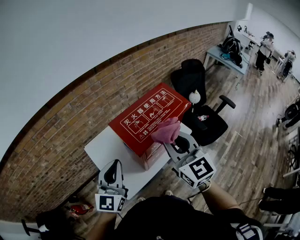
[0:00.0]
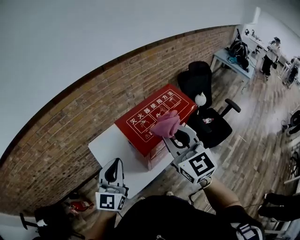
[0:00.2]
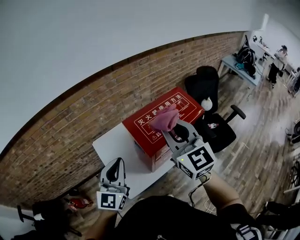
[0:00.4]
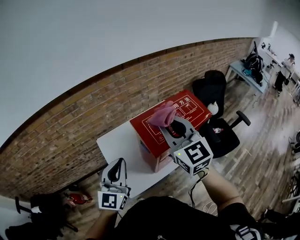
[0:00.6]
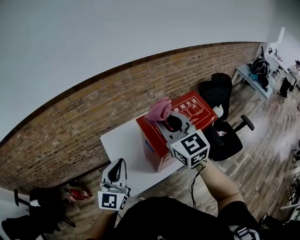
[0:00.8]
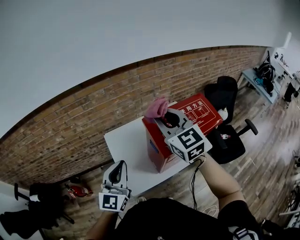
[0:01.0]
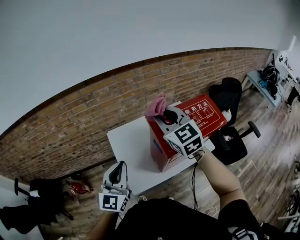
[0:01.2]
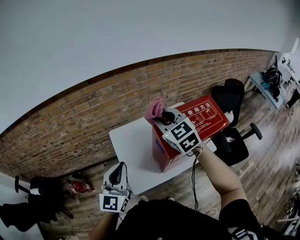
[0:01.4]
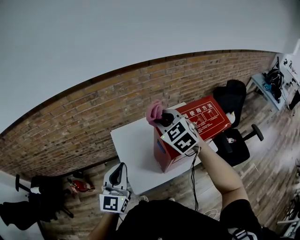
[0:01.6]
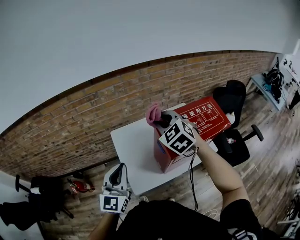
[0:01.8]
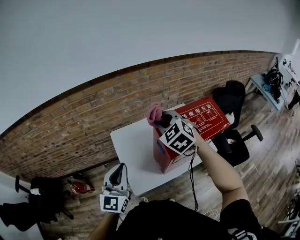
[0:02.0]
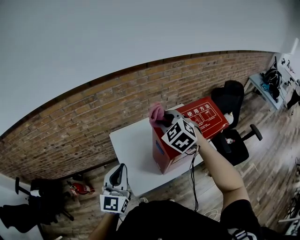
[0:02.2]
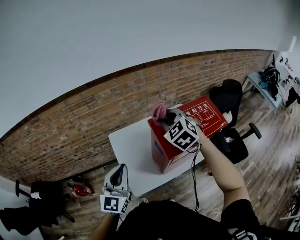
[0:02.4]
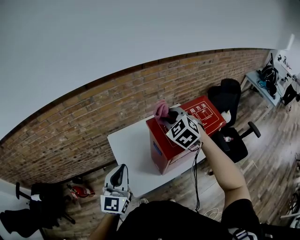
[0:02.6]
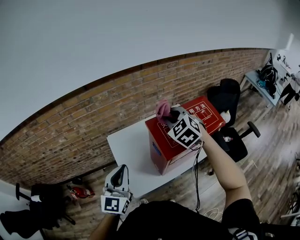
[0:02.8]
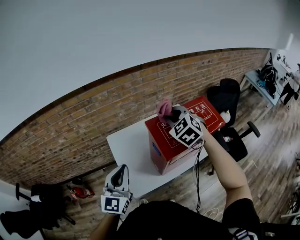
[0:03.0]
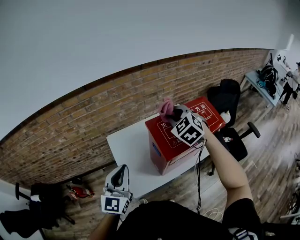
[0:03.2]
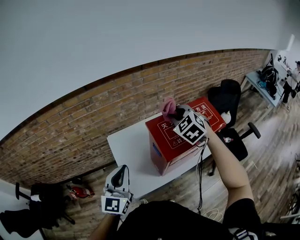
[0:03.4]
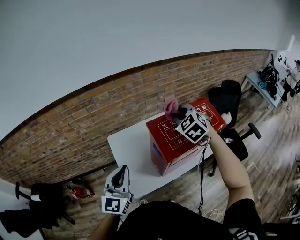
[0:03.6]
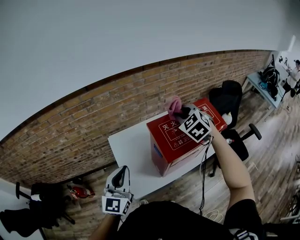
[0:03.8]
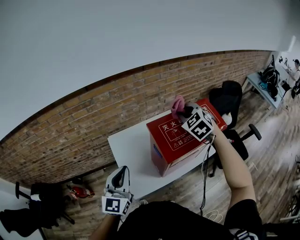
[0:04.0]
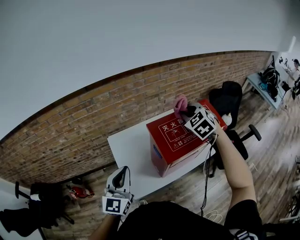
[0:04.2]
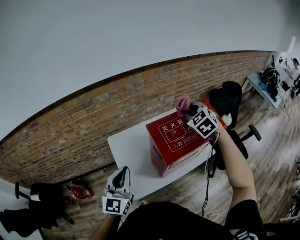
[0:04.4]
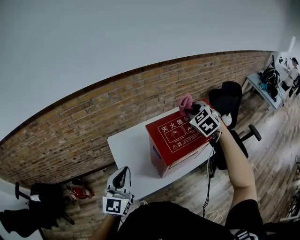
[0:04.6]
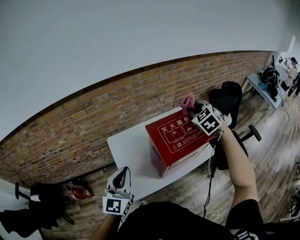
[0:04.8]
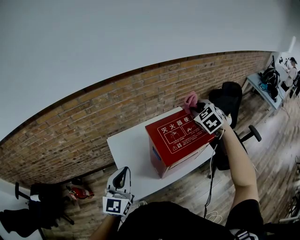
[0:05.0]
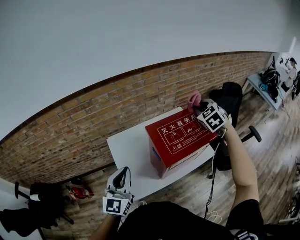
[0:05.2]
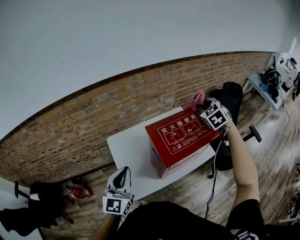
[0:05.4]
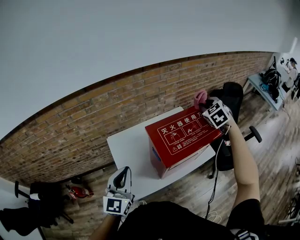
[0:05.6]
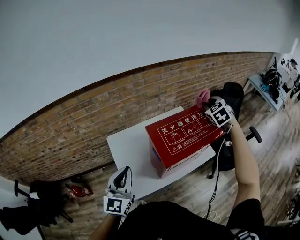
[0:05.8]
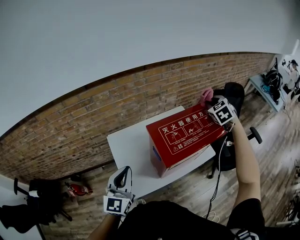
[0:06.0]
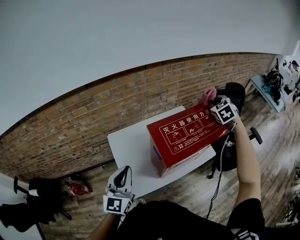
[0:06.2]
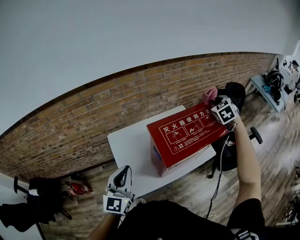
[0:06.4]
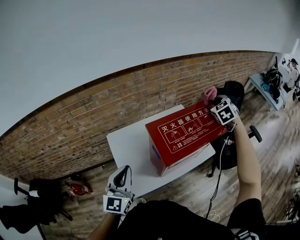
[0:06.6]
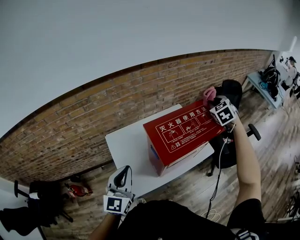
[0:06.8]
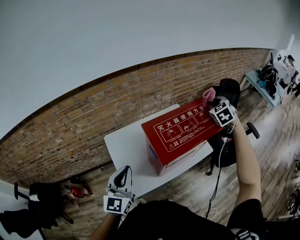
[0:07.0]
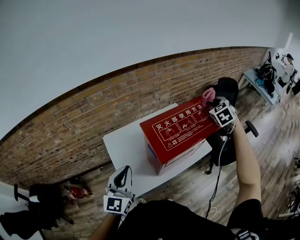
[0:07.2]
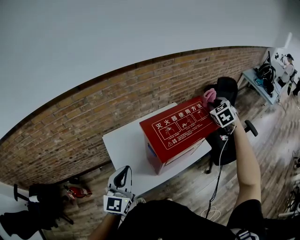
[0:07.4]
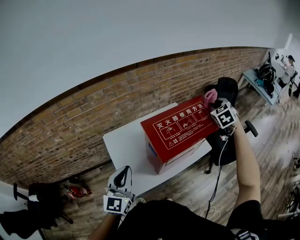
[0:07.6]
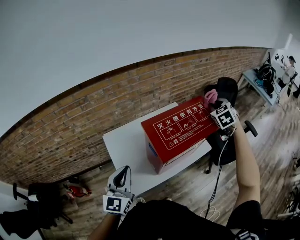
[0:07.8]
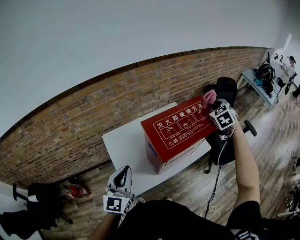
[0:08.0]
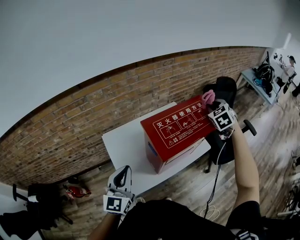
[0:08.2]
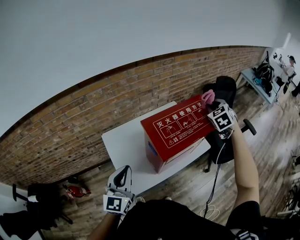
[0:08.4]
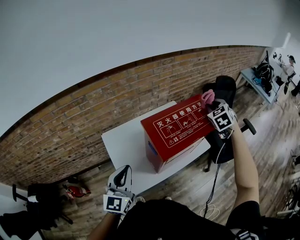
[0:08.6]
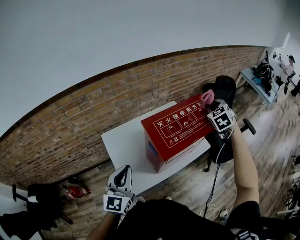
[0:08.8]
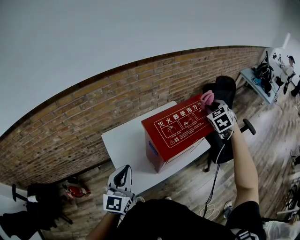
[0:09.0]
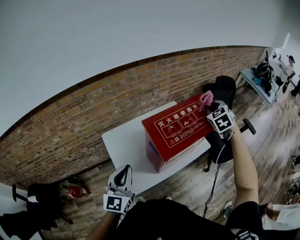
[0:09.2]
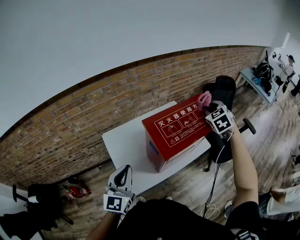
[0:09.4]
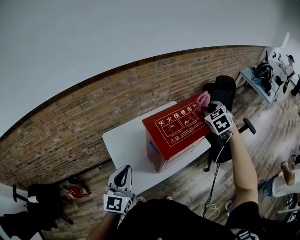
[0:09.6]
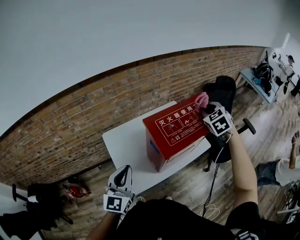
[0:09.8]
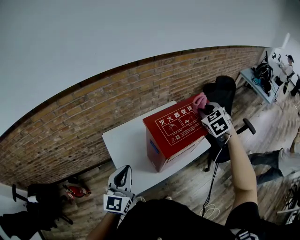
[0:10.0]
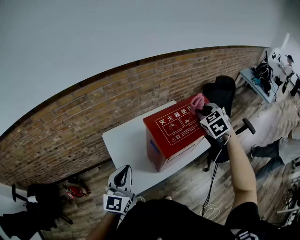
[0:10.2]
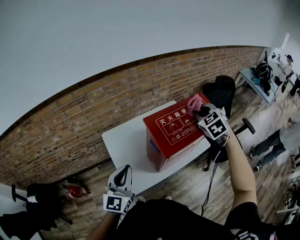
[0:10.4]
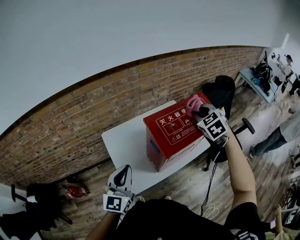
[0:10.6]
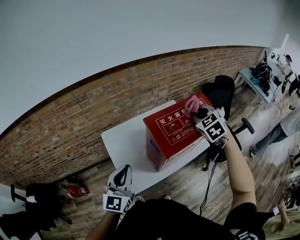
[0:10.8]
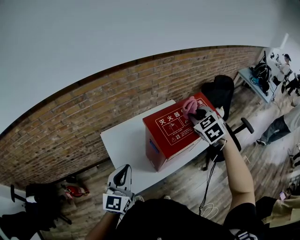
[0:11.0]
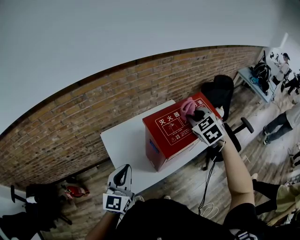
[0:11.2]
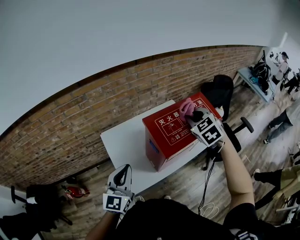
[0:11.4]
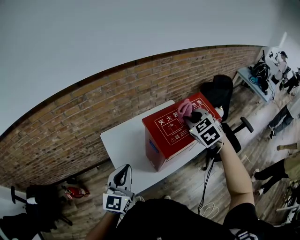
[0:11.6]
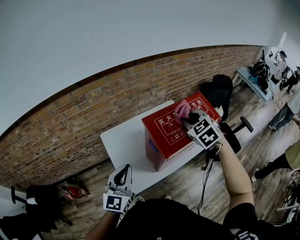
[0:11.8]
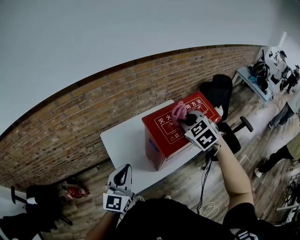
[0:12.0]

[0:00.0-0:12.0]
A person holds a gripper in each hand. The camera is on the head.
0:00.0 to 0:01.6: The left gripper heads to the left, covering some 10 cm. Meanwhile the right gripper is displaced to the left and forward by about 20 cm, and turns by some 40 degrees.
0:01.6 to 0:03.0: The right gripper travels to the right by approximately 10 cm.
0:03.0 to 0:04.4: The right gripper heads to the right, covering some 10 cm.
0:04.4 to 0:06.0: The right gripper moves to the right and forward, approximately 15 cm.
0:06.0 to 0:07.6: The right gripper travels to the right by about 5 cm.
0:07.6 to 0:09.0: The grippers make only small movements.
0:09.0 to 0:10.4: The right gripper heads to the left and backward, covering some 10 cm.
0:10.4 to 0:12.0: The right gripper goes some 10 cm to the left and backward.

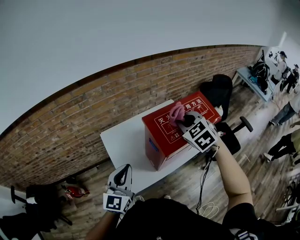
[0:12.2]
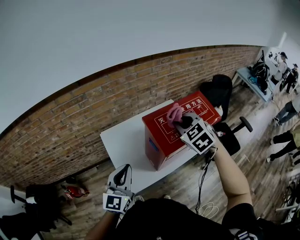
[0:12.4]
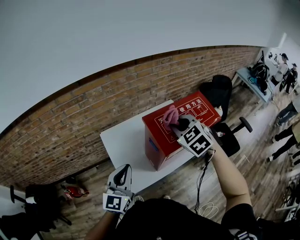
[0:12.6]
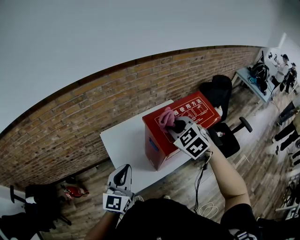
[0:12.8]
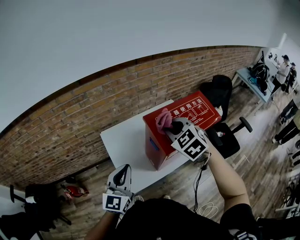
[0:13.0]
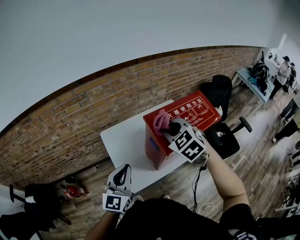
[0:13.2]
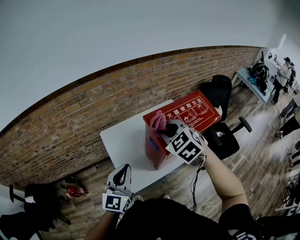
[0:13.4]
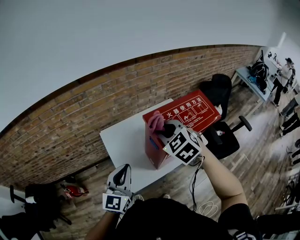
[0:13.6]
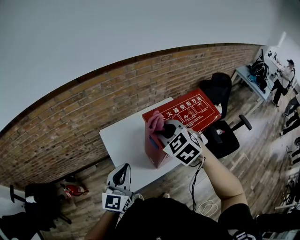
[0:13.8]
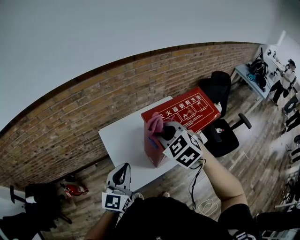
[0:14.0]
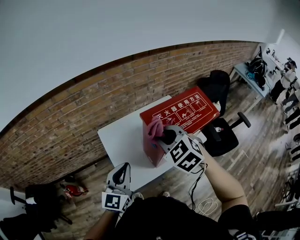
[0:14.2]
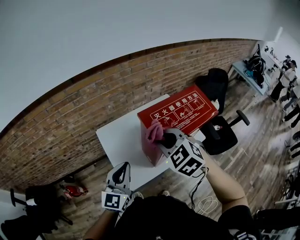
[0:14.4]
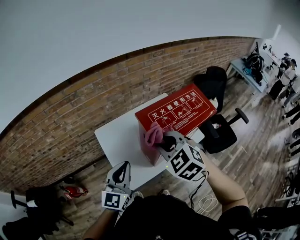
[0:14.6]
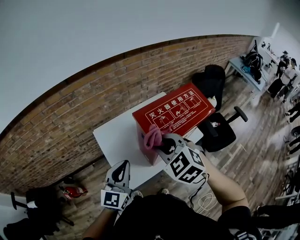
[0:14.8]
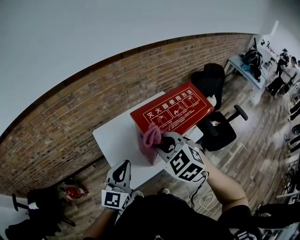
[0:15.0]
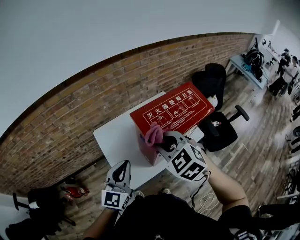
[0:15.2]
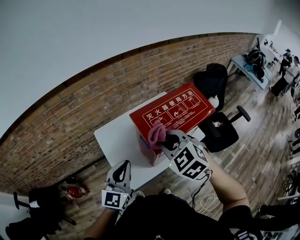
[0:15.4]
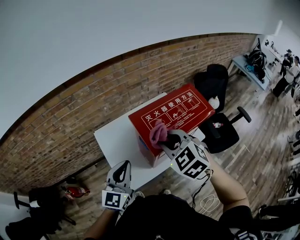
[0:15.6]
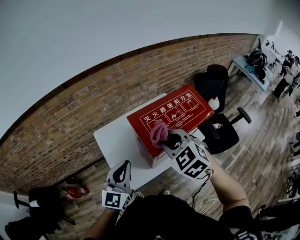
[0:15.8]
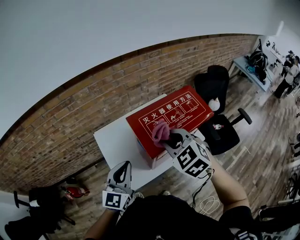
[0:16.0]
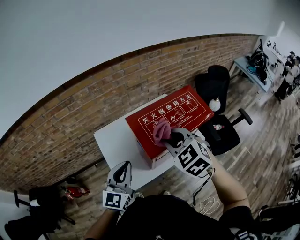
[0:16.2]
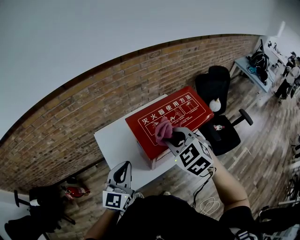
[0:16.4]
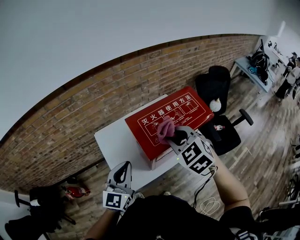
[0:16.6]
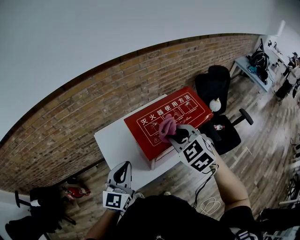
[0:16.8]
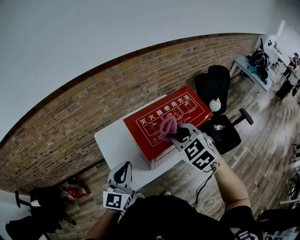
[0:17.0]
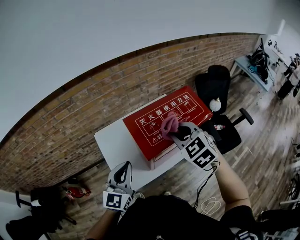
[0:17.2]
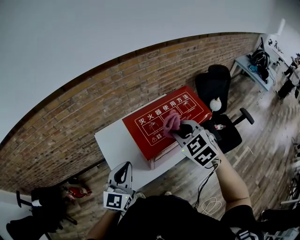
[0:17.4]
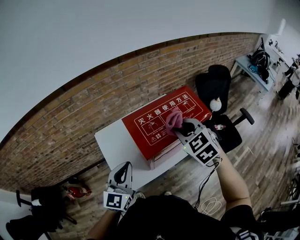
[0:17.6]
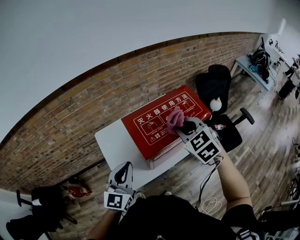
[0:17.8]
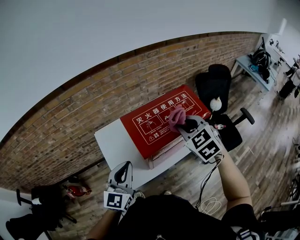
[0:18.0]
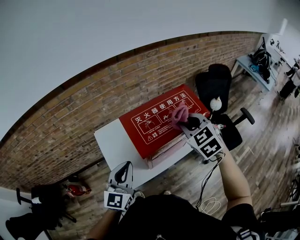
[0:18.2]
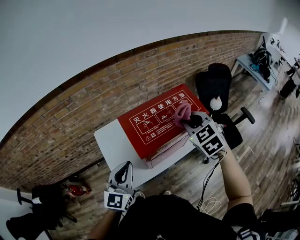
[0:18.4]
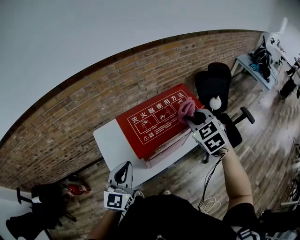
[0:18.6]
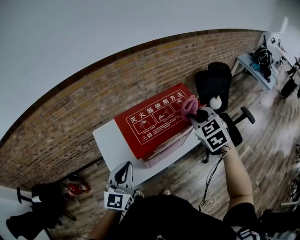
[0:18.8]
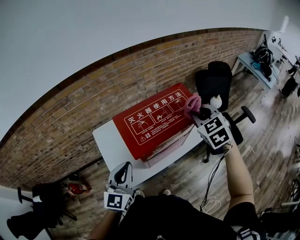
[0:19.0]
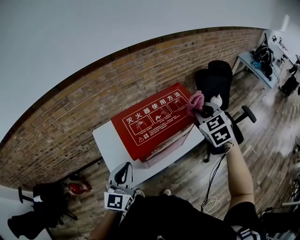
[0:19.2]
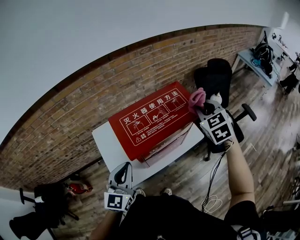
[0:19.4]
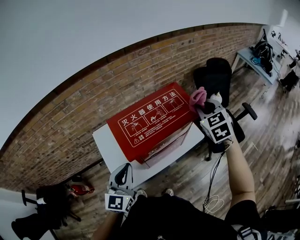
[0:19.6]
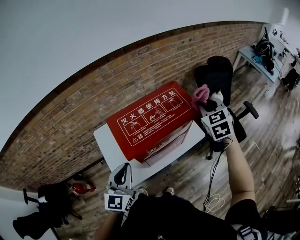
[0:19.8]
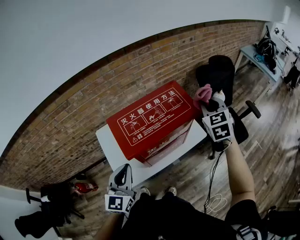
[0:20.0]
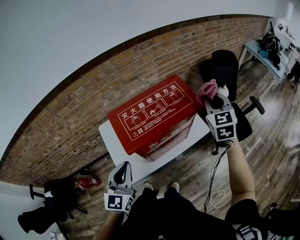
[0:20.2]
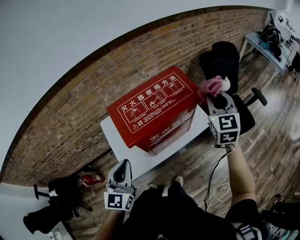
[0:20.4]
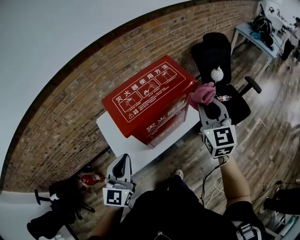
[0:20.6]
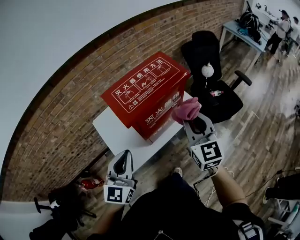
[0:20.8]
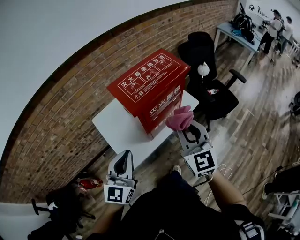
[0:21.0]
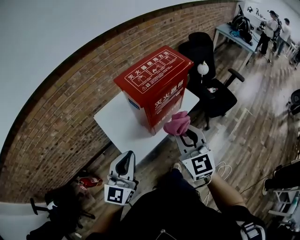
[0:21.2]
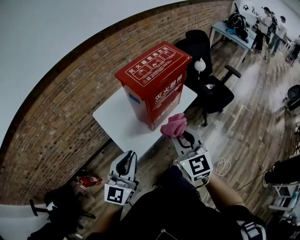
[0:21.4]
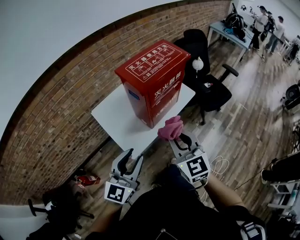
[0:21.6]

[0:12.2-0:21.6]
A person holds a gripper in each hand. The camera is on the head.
0:12.2 to 0:13.8: The right gripper is displaced to the left and backward by about 10 cm.
0:13.8 to 0:15.4: The right gripper changes place by approximately 5 cm. The left gripper moves approximately 5 cm.
0:15.4 to 0:17.0: The right gripper travels to the right by approximately 10 cm.
0:17.0 to 0:18.4: The right gripper heads to the right, covering some 10 cm.
0:18.4 to 0:20.0: The right gripper heads to the right and forward, covering approximately 15 cm.
0:20.0 to 0:21.6: The left gripper moves backward, approximately 20 cm, swivels some 30 degrees, and opens up, while the right gripper shifts roughly 50 cm backward and to the left, and changes its angle by roughly 20 degrees.

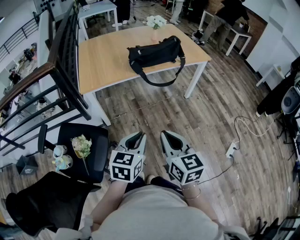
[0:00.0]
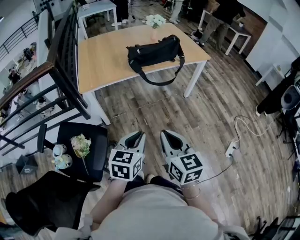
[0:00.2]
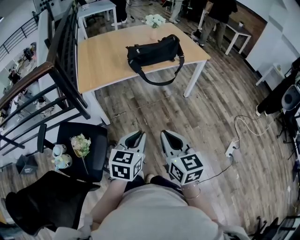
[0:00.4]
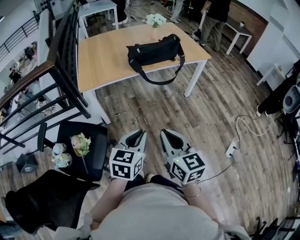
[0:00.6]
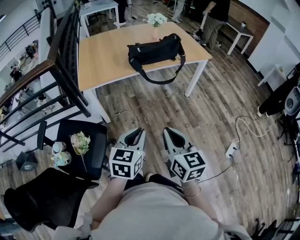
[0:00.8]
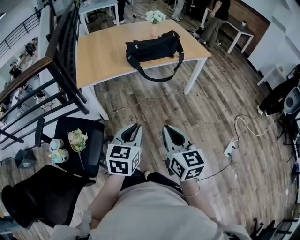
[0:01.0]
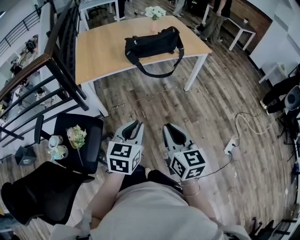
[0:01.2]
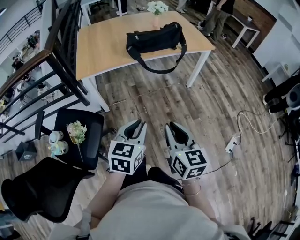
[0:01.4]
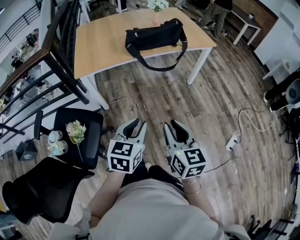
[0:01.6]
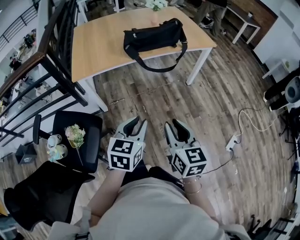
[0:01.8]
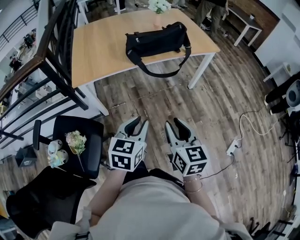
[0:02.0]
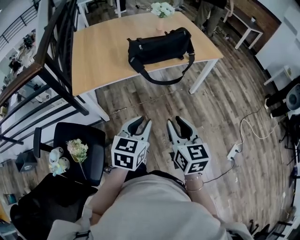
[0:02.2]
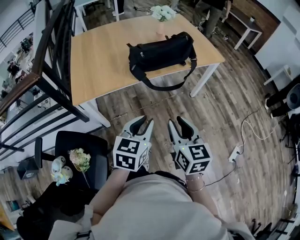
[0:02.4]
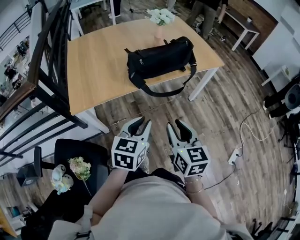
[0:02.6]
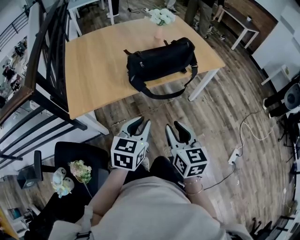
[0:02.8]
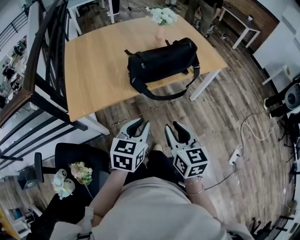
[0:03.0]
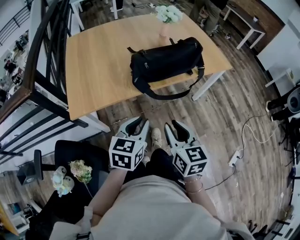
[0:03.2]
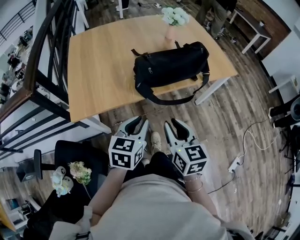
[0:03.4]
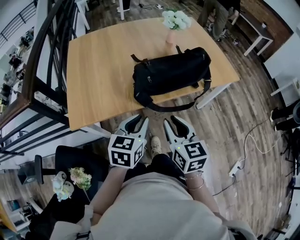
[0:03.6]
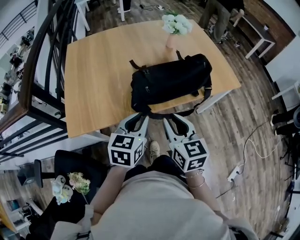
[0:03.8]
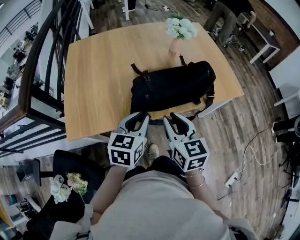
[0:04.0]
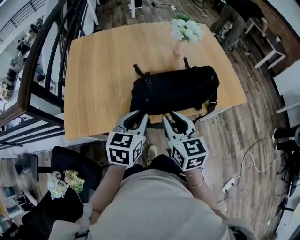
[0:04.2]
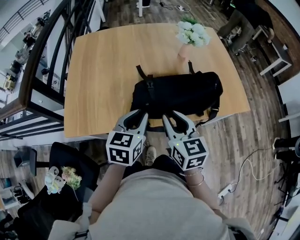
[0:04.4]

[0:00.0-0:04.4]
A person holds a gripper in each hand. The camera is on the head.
0:00.0 to 0:01.4: The right gripper heads to the right, covering approximately 5 cm.
0:01.4 to 0:03.0: Both grippers travel together forward, roughly 30 cm.
0:03.0 to 0:04.4: Both grippers travel together forward, about 25 cm.
